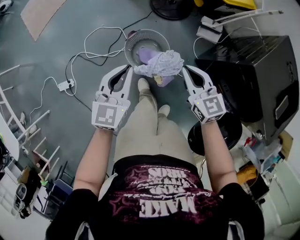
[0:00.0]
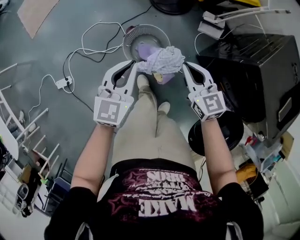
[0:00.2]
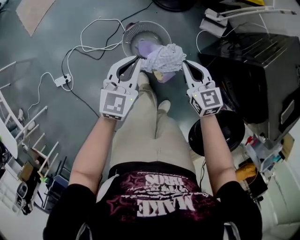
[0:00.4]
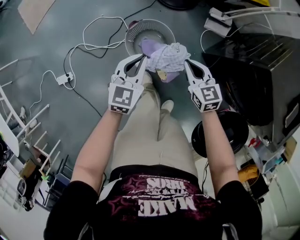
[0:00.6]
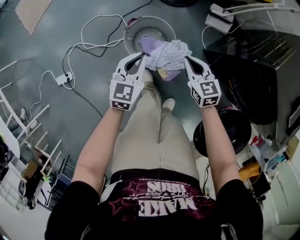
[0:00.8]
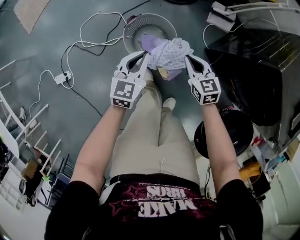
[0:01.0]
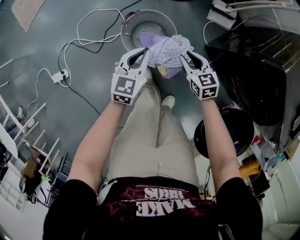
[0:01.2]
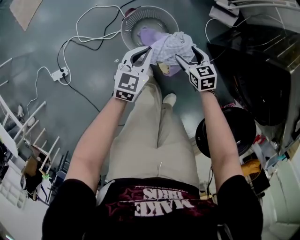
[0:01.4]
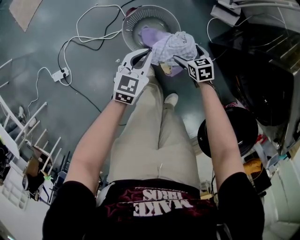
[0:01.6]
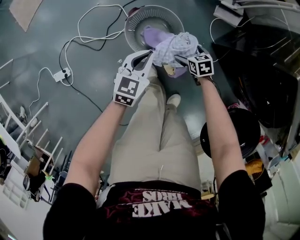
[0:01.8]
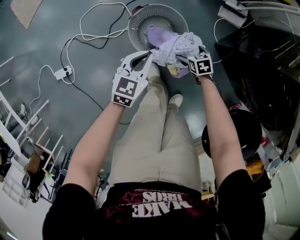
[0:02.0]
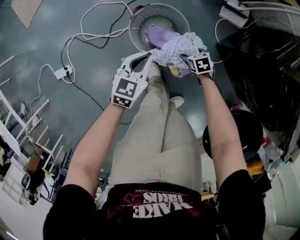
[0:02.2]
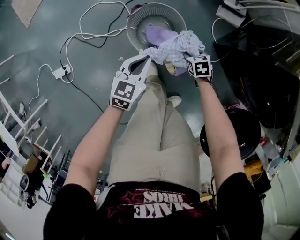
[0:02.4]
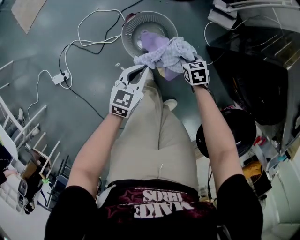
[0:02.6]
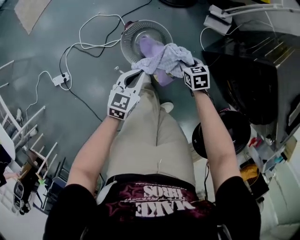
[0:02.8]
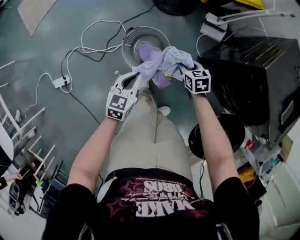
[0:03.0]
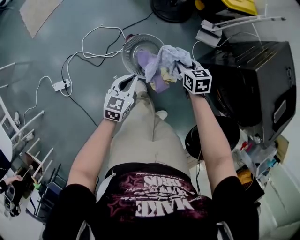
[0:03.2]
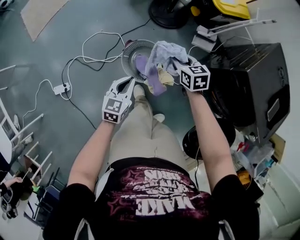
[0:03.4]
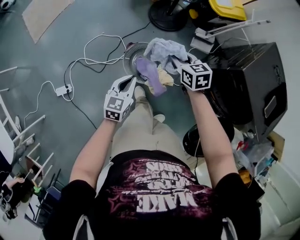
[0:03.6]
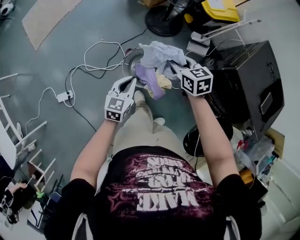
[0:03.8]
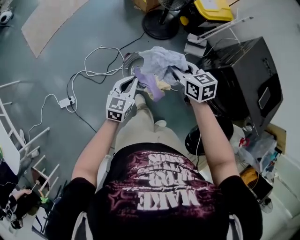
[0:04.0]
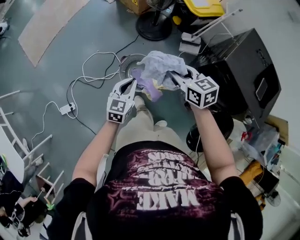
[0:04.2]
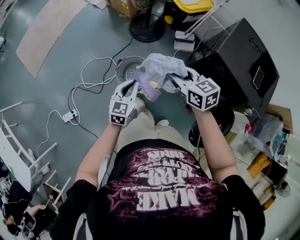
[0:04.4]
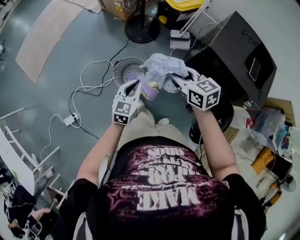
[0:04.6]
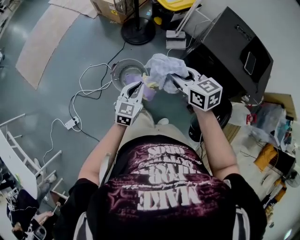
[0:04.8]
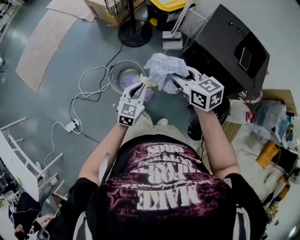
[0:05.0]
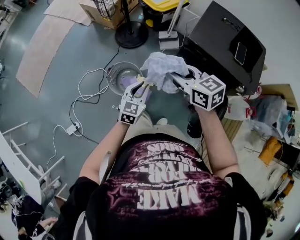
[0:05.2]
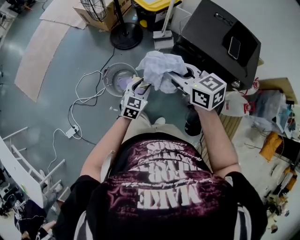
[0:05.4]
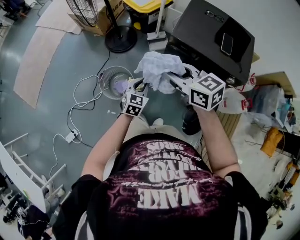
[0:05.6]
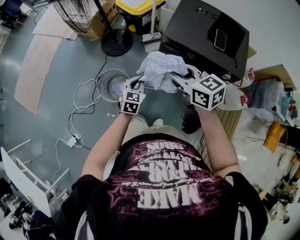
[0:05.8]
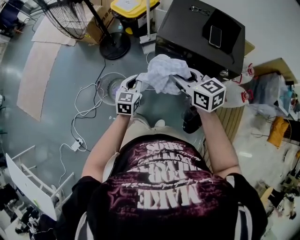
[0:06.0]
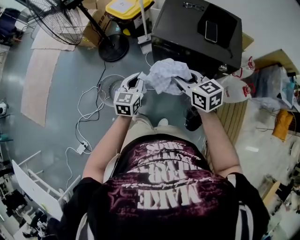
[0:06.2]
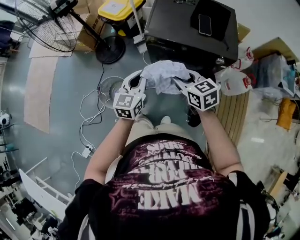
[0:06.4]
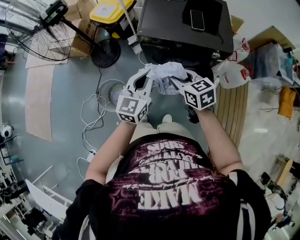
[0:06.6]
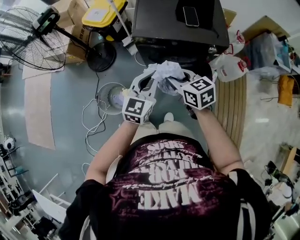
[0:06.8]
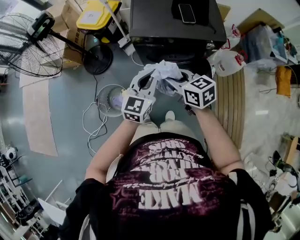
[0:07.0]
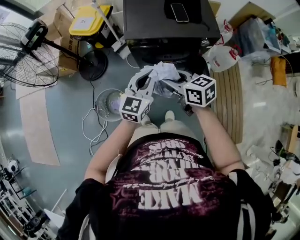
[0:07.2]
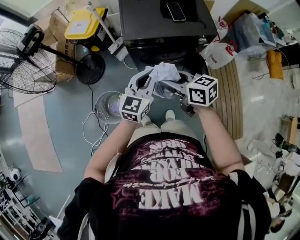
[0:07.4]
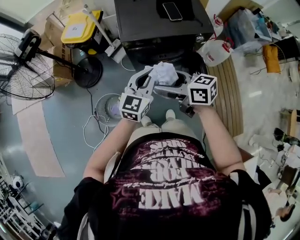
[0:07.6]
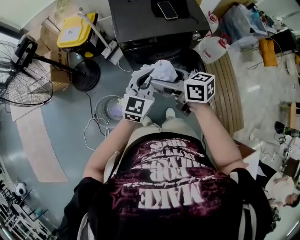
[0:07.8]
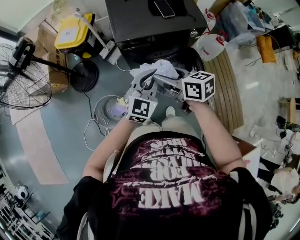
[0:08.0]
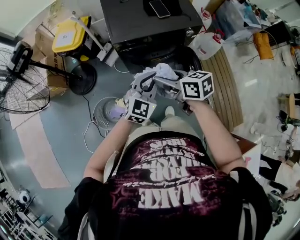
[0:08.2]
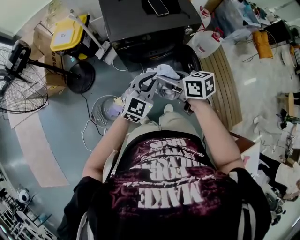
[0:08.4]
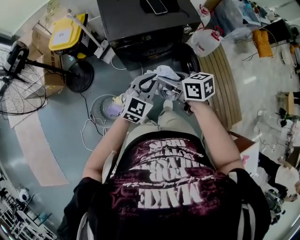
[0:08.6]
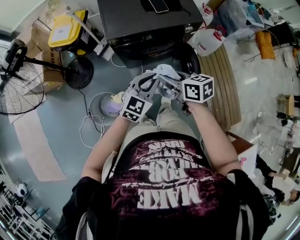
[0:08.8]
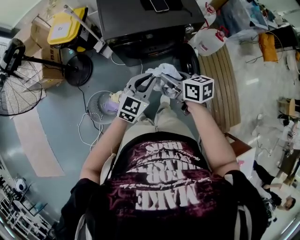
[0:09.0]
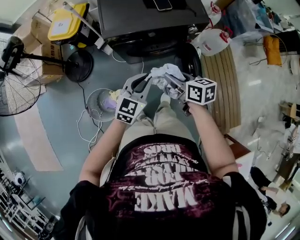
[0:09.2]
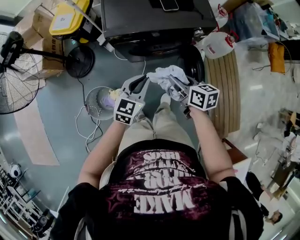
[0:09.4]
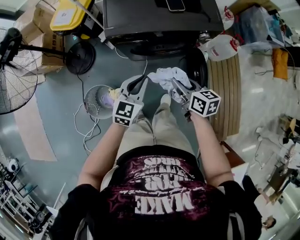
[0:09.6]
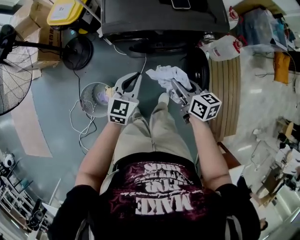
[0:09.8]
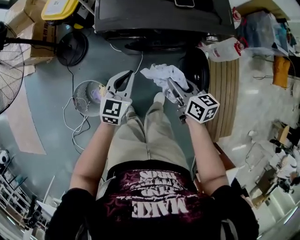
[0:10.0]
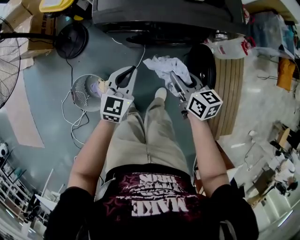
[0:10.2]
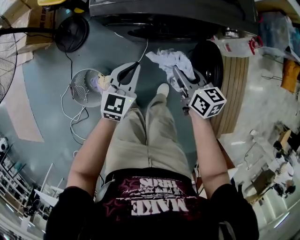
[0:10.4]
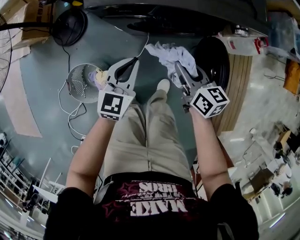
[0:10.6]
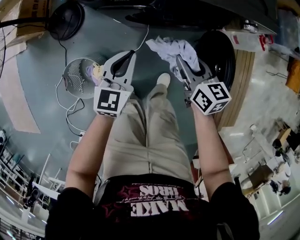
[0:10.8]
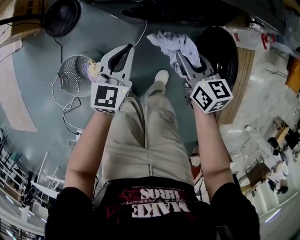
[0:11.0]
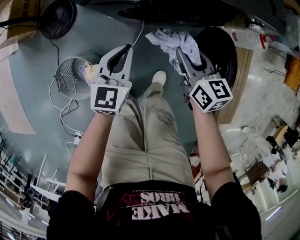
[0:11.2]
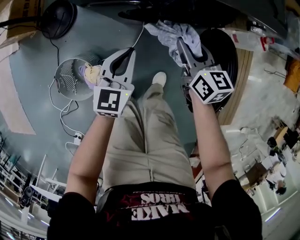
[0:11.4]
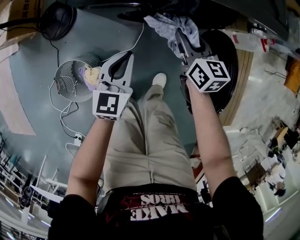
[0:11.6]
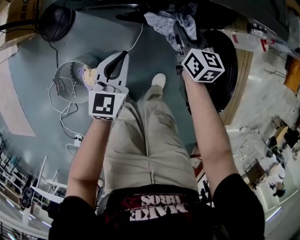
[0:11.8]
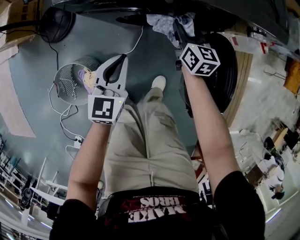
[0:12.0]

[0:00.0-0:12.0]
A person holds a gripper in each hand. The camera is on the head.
0:00.0 to 0:01.6: Both grippers travel together downward, roughly 30 cm. The right gripper tilts its fingers roughly 30 degrees downward, and opens up.
0:01.6 to 0:03.0: The left gripper shifts roughly 10 cm upward and backward; the right gripper goes approximately 15 cm upward, and closes its fingers.
0:03.0 to 0:04.4: The right gripper travels upward by about 35 cm, and rotates some 20 degrees, while the left gripper goes approximately 20 cm upward.
0:04.4 to 0:06.0: The right gripper shifts about 30 cm to the right and backward; the left gripper heads to the right, covering approximately 25 cm, and opens and closes again.
0:06.0 to 0:07.6: The left gripper travels upward by roughly 10 cm, and changes its angle by roughly 40 degrees. The right gripper changes its angle by some 30 degrees, and opens its fingers.
0:07.6 to 0:09.0: The grippers both shift to the right and downward by roughly 10 cm. The right gripper turns by some 20 degrees, and closes.
0:09.0 to 0:10.4: Both grippers move downward and forward, some 20 cm. The left gripper rotates about 20 degrees.
0:10.4 to 0:12.0: The left gripper moves downward, approximately 10 cm, while the right gripper goes roughly 20 cm forward and downward.

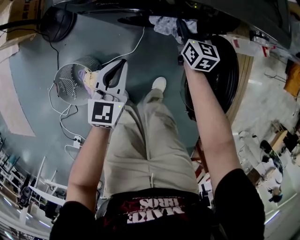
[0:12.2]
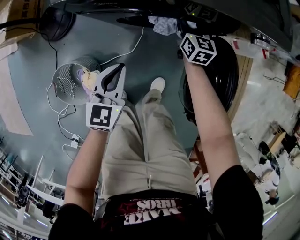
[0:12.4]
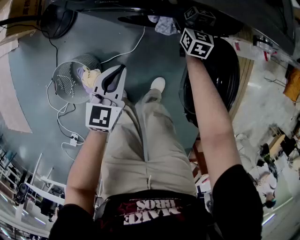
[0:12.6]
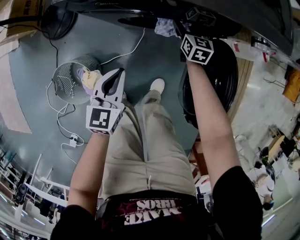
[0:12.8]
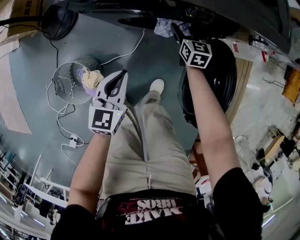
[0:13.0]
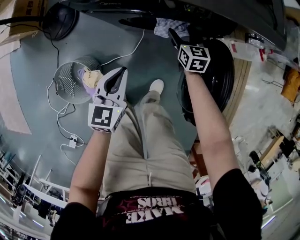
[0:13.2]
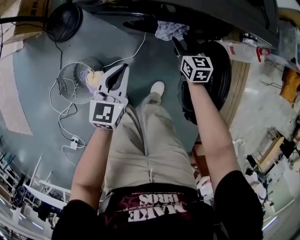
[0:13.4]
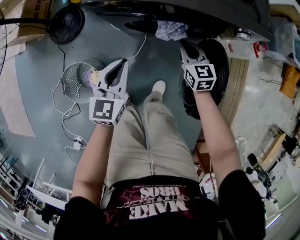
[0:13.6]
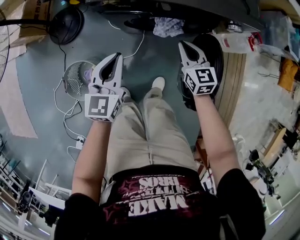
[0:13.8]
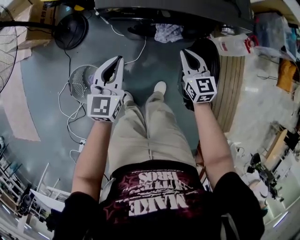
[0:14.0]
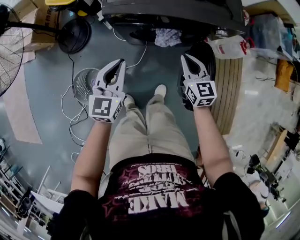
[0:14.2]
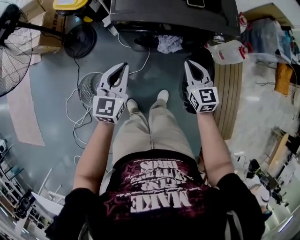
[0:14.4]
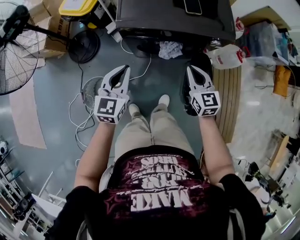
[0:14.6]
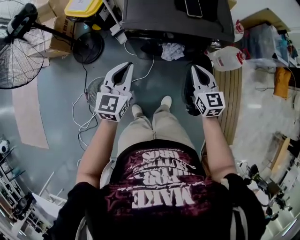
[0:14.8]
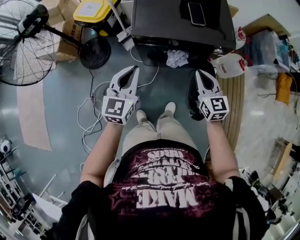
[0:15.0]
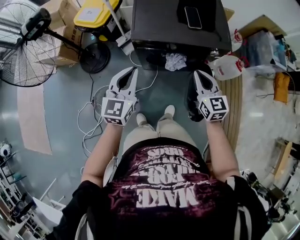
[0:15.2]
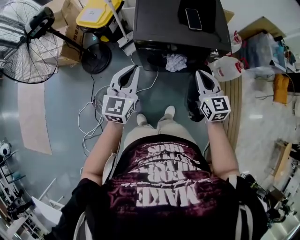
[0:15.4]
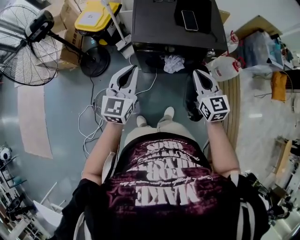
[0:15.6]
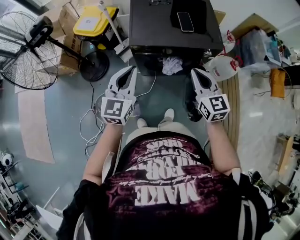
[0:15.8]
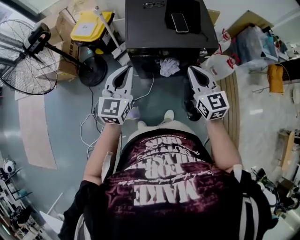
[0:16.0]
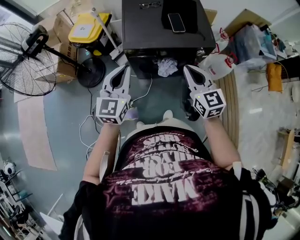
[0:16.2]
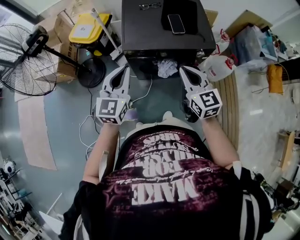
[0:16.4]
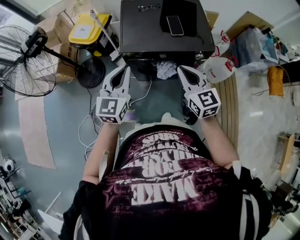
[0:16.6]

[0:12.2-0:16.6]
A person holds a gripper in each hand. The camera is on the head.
0:12.2 to 0:13.6: The left gripper heads upward, covering approximately 5 cm. The right gripper heads backward and upward, covering some 10 cm, and opens, then closes once more.
0:13.6 to 0:15.2: Both grippers travel together upward, about 30 cm.
0:15.2 to 0:16.6: Both grippers move upward, some 10 cm.

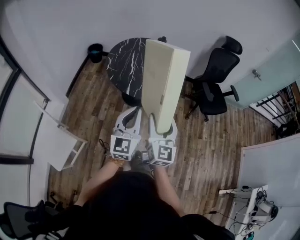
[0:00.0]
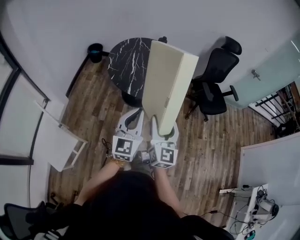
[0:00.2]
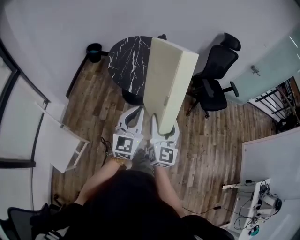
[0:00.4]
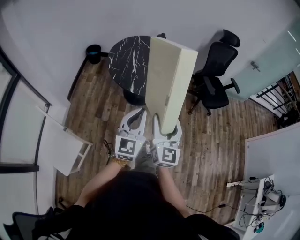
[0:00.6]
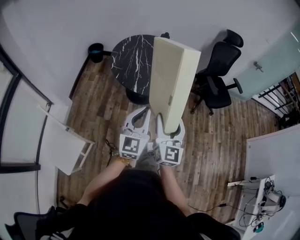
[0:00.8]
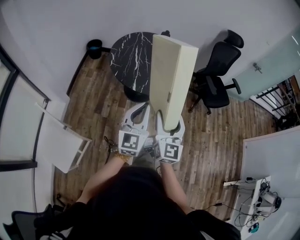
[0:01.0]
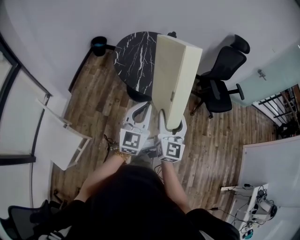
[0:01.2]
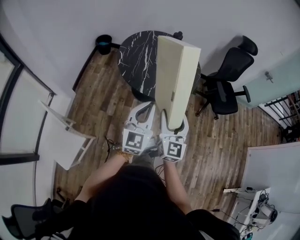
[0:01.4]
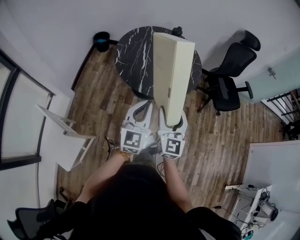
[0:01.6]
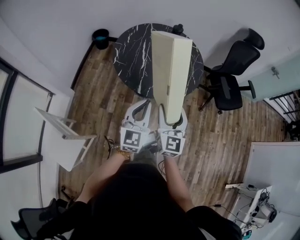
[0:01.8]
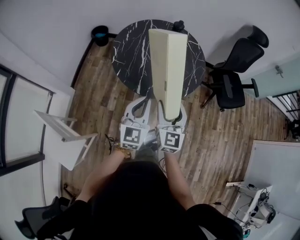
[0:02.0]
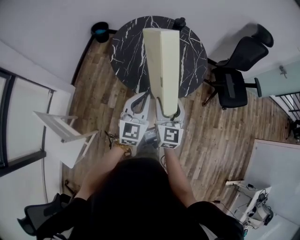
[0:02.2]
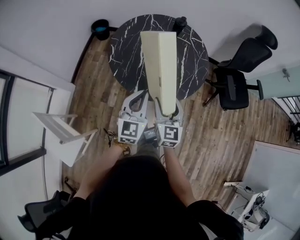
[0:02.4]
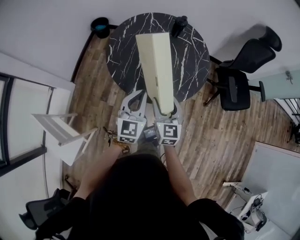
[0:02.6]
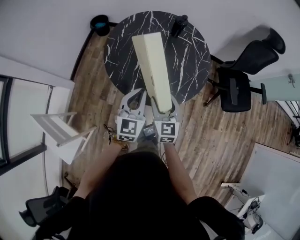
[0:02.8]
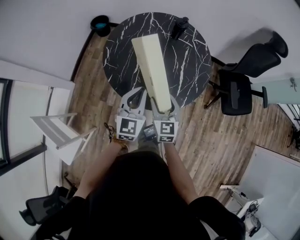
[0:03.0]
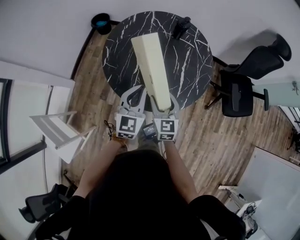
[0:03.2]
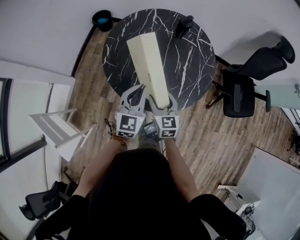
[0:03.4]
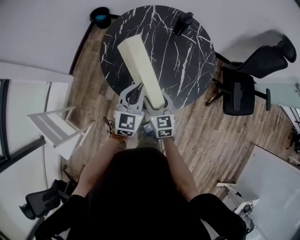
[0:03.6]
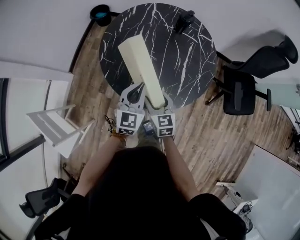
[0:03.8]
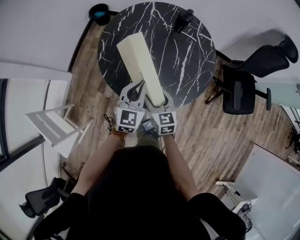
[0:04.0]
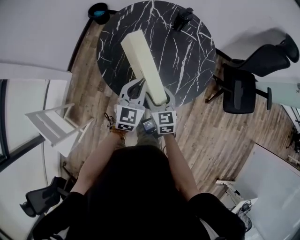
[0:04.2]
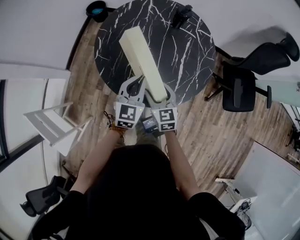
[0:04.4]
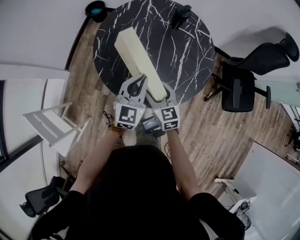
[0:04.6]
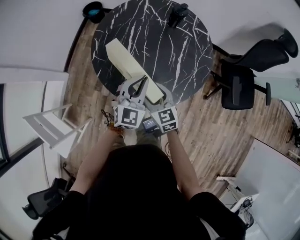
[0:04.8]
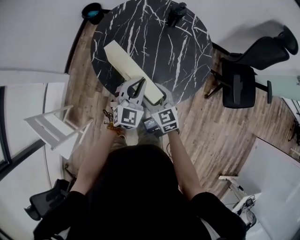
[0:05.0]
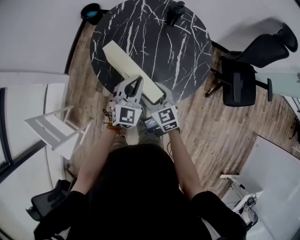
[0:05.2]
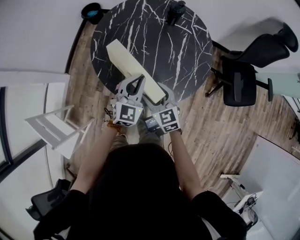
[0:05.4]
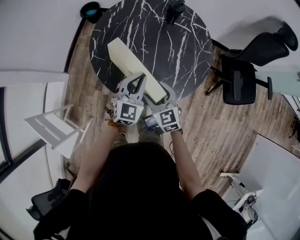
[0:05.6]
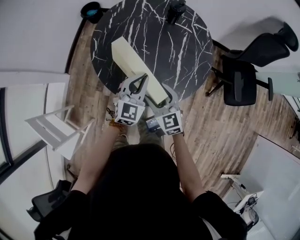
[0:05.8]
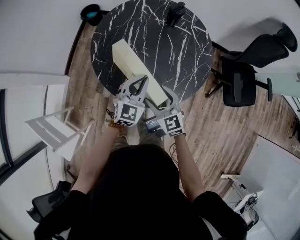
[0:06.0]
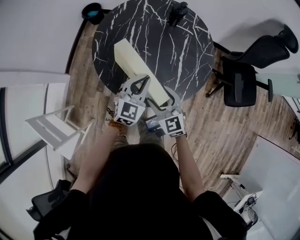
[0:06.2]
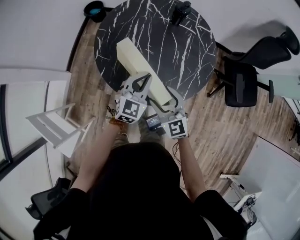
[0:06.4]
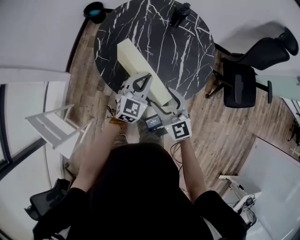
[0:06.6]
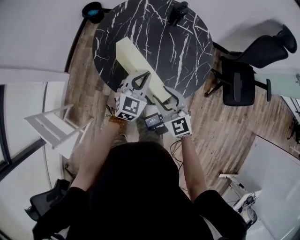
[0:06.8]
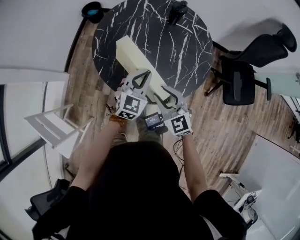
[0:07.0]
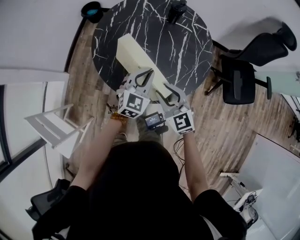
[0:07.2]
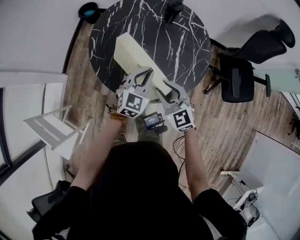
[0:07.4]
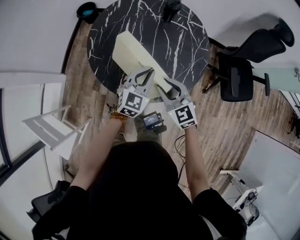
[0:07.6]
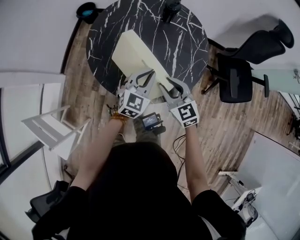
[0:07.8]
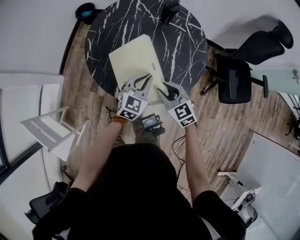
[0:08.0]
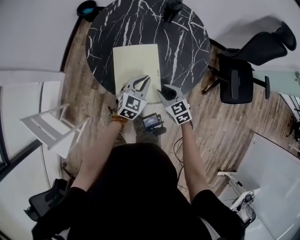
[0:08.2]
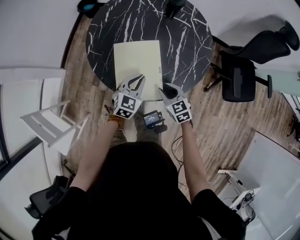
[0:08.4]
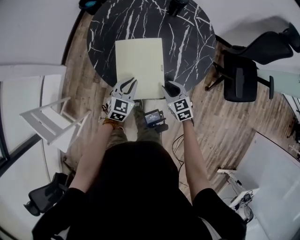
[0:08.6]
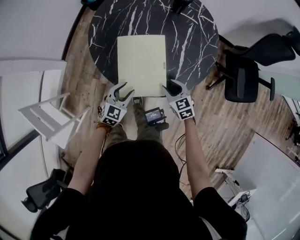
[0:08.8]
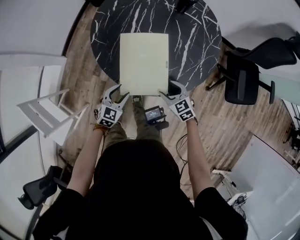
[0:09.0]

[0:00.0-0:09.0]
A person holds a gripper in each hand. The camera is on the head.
0:00.0 to 0:01.6: Both grippers travel together forward, downward and to the left, about 15 cm.
0:01.6 to 0:03.0: The left gripper shifts some 25 cm forward, while the right gripper travels forward and downward by about 30 cm, and changes its angle by some 20 degrees.
0:03.0 to 0:04.4: Both grippers move downward and forward, some 10 cm.
0:04.4 to 0:06.0: The grippers move only a little.
0:06.0 to 0:07.6: The right gripper shifts by about 5 cm, and closes up.
0:07.6 to 0:09.0: The right gripper moves downward, roughly 20 cm, turns by approximately 20 degrees, and opens its fingers. Meanwhile the left gripper travels downward, to the left and backward by some 25 cm, and opens.
